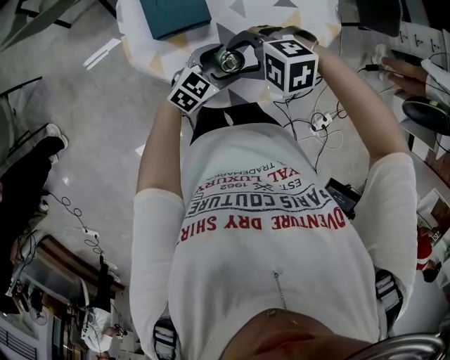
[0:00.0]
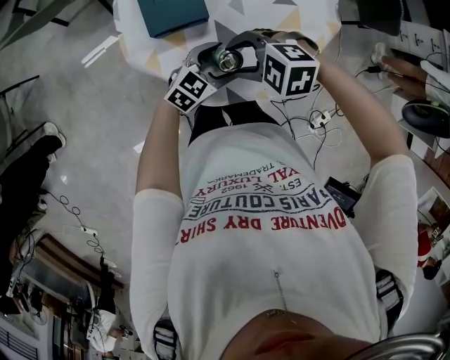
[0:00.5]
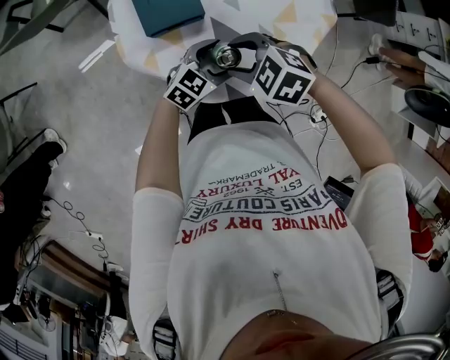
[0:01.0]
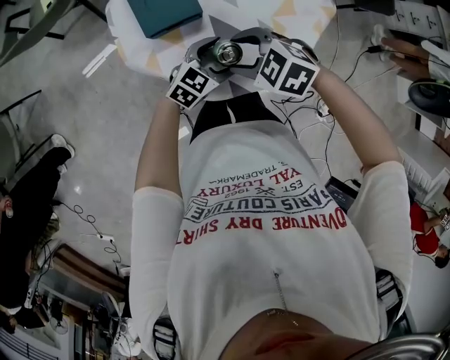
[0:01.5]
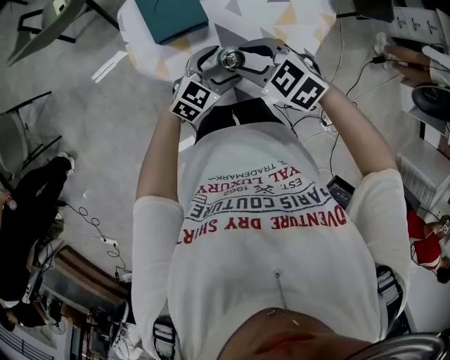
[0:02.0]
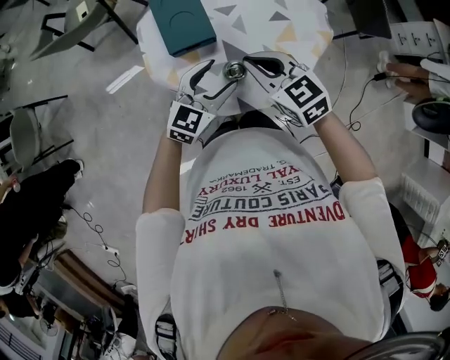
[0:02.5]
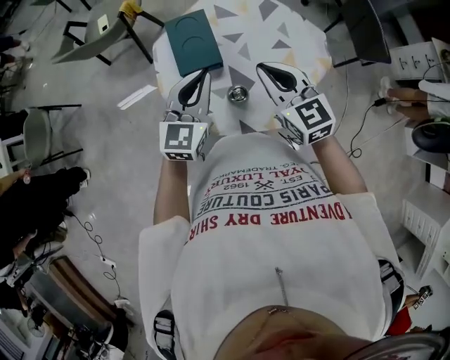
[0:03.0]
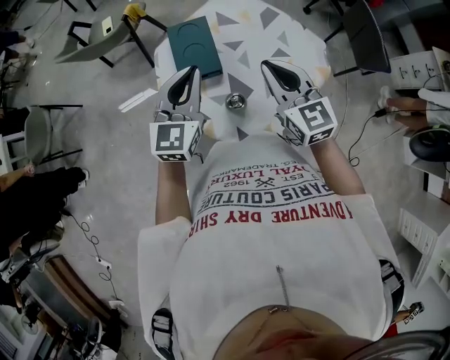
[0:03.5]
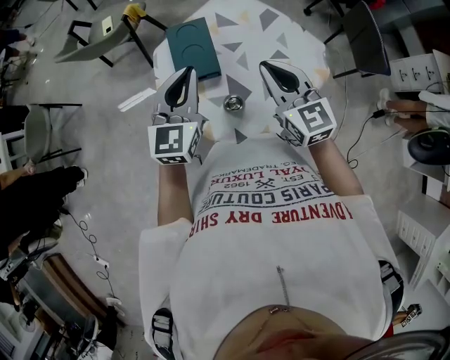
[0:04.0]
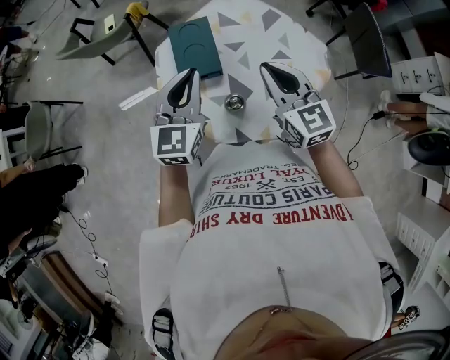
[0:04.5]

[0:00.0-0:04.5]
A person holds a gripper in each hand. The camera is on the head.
0:00.0 to 0:02.0: The right gripper swivels some 40 degrees.
0:02.0 to 0:04.5: The right gripper shifts roughly 15 cm upward, tips its fingers upward by some 40 degrees, and closes, while the left gripper travels upward by approximately 25 cm, swivels roughly 50 degrees, and closes up.

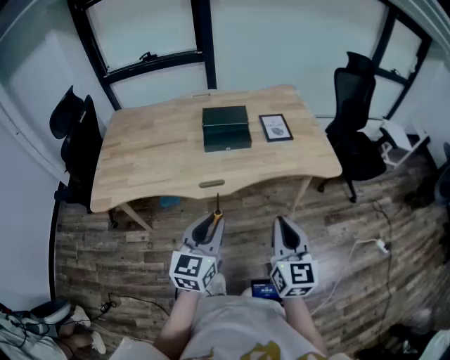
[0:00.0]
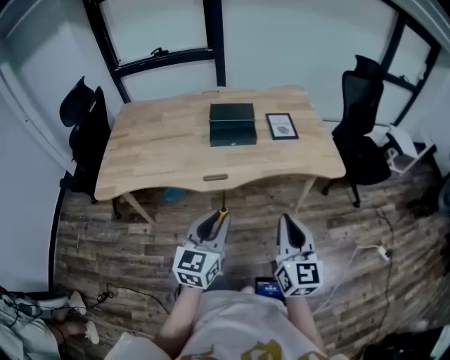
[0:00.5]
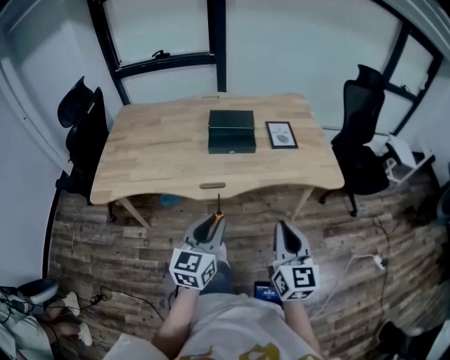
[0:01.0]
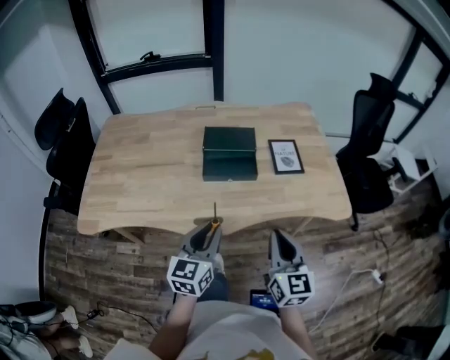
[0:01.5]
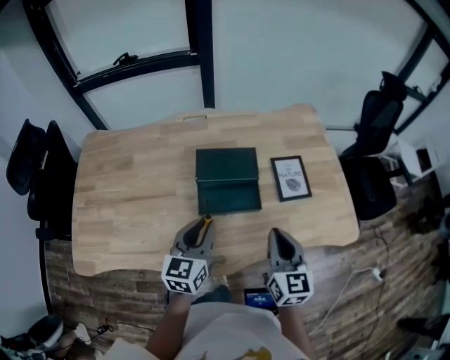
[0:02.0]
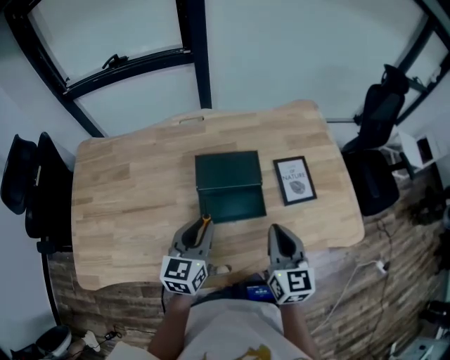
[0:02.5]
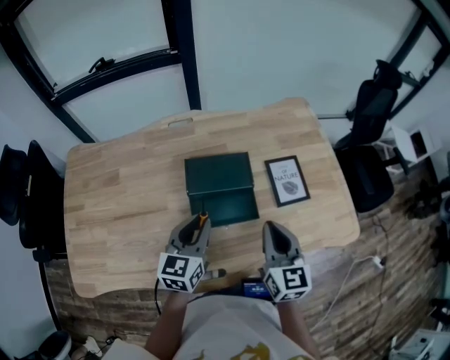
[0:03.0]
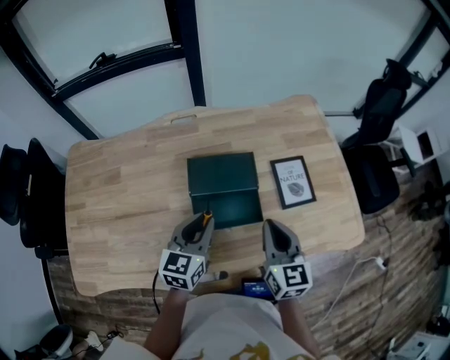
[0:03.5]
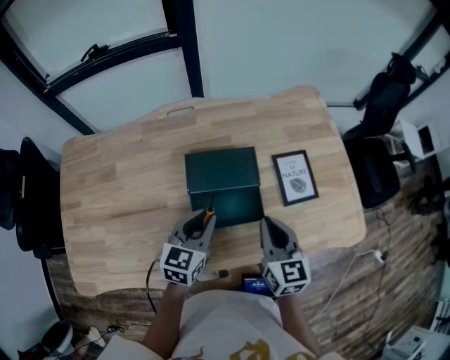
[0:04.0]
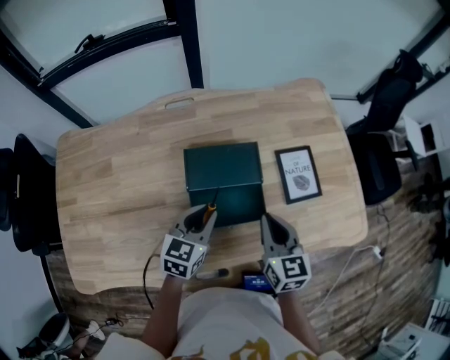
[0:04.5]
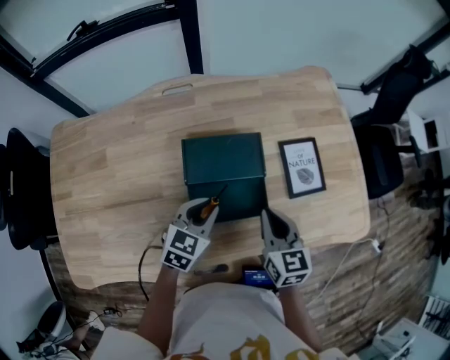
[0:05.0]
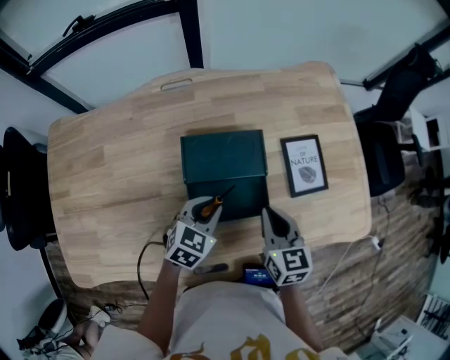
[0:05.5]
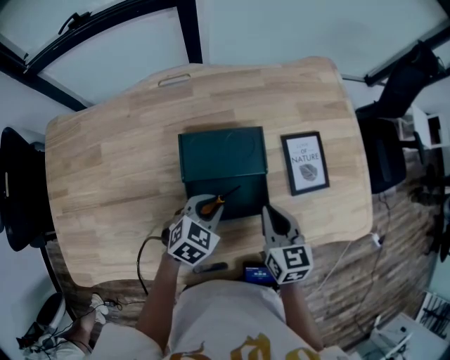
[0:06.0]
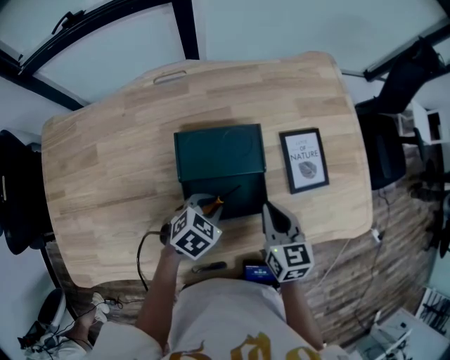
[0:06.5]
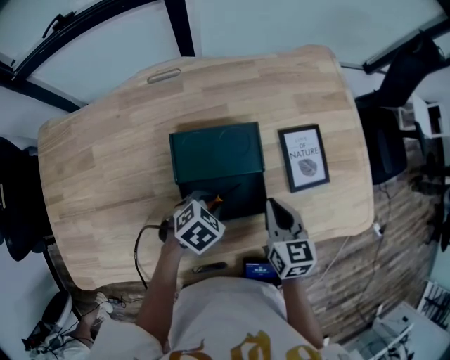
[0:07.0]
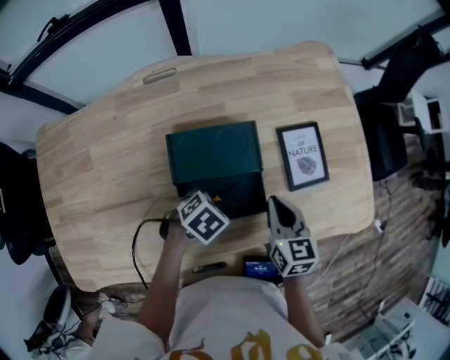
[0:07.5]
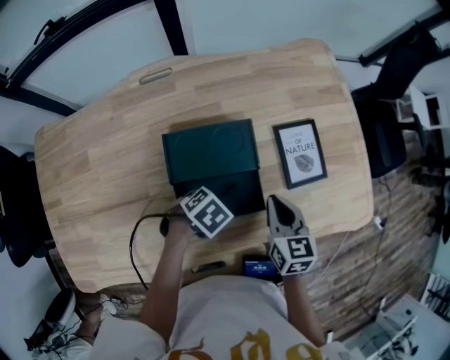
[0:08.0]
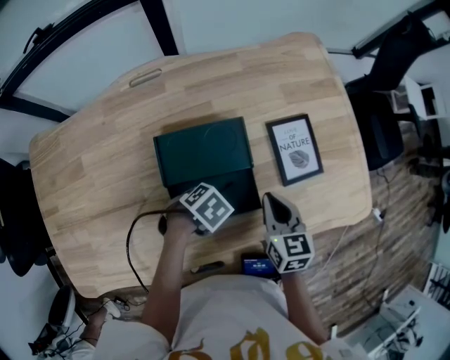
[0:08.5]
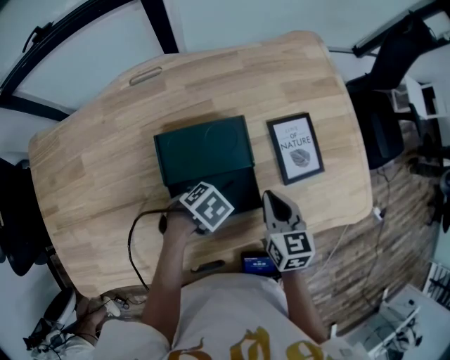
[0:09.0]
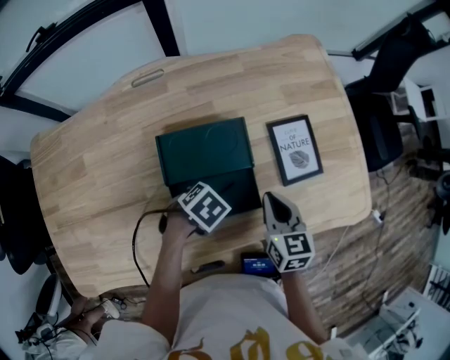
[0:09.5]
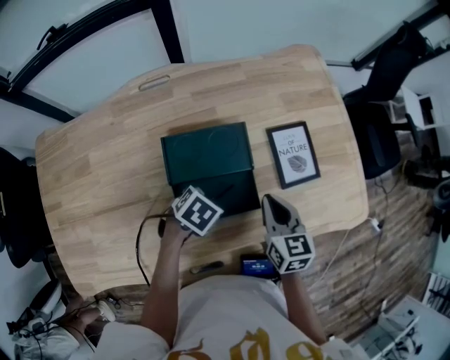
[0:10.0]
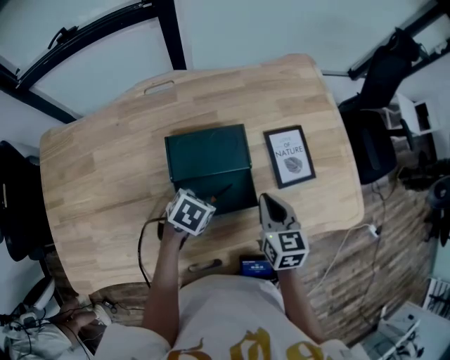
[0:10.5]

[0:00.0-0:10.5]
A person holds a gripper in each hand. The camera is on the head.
0:00.0 to 0:02.0: Both grippers travel together forward, approximately 35 cm.
0:02.0 to 0:04.0: The right gripper moves forward, approximately 10 cm. The left gripper heads forward and downward, covering some 10 cm.
0:04.0 to 0:06.5: The right gripper heads downward, covering approximately 10 cm, while the left gripper travels downward by about 15 cm, and points its fingers about 30 degrees further downward.
0:06.5 to 0:08.5: The left gripper swivels some 30 degrees.
0:08.5 to 0:10.5: The left gripper moves approximately 5 cm, and swivels roughly 30 degrees.

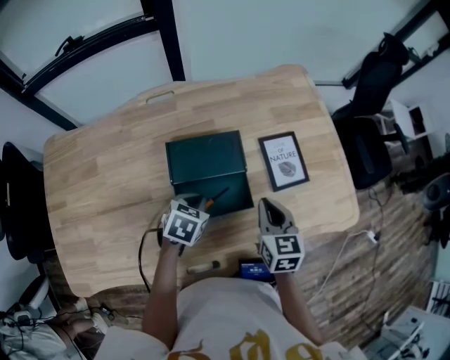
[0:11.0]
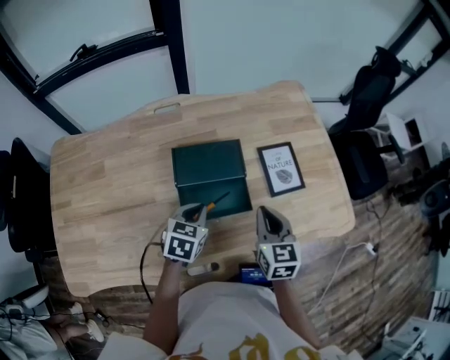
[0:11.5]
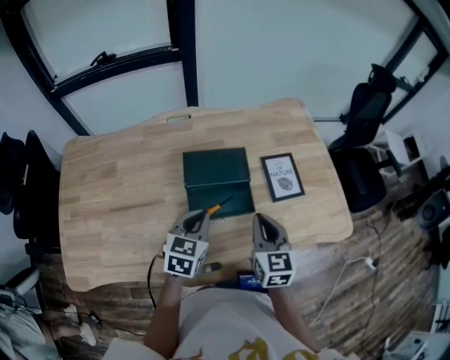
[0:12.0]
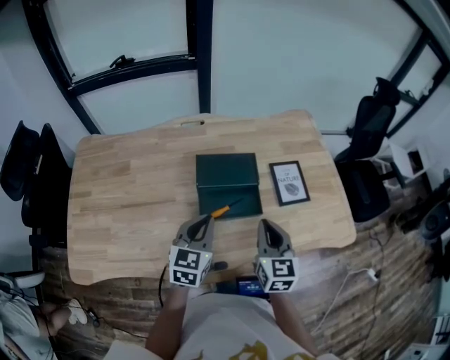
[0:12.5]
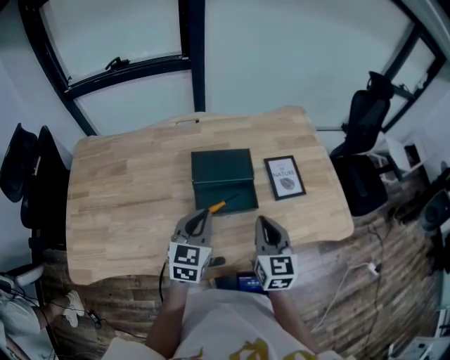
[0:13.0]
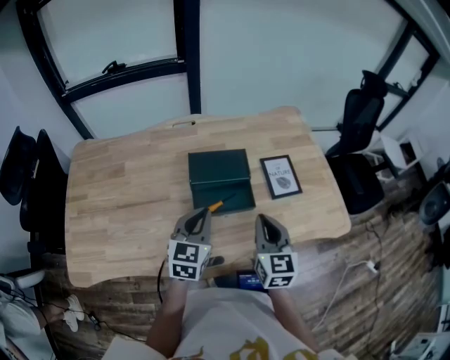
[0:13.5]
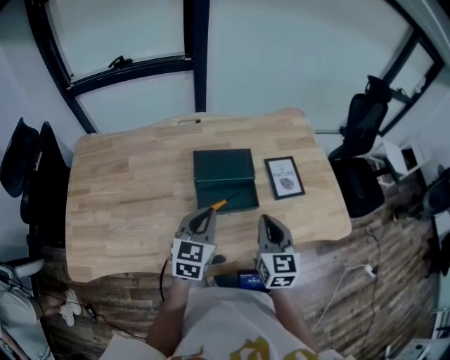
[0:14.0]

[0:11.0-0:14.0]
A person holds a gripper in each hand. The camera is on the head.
0:11.0 to 0:12.5: The right gripper travels backward and upward by approximately 10 cm, while the left gripper heads upward and backward, covering some 15 cm, and angles its fingers upward, by some 40 degrees.
0:12.5 to 0:14.0: There are only small adjustments of the grippers.

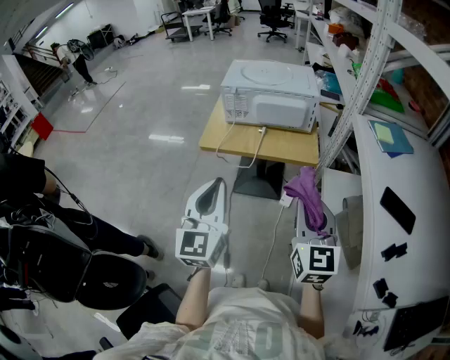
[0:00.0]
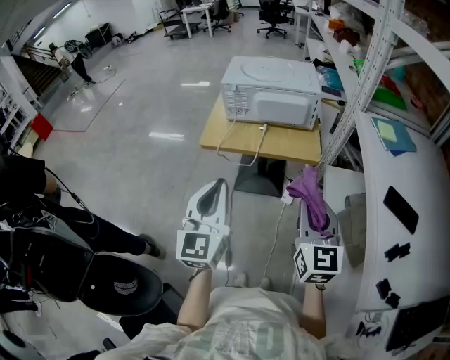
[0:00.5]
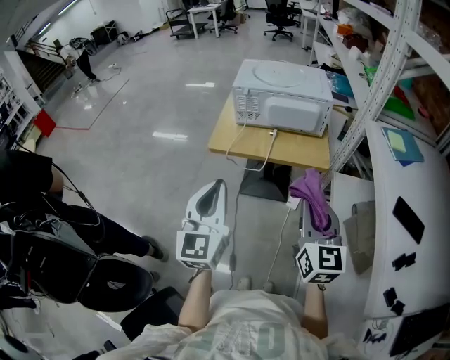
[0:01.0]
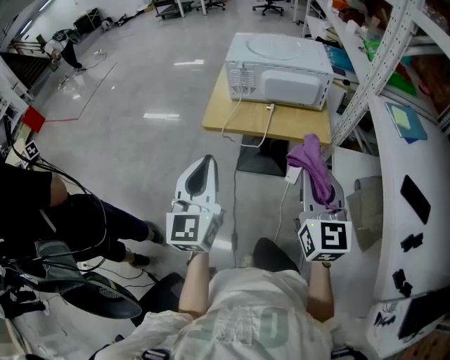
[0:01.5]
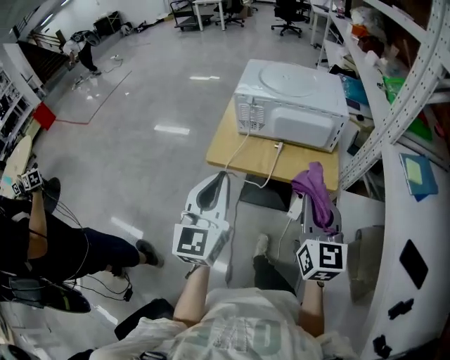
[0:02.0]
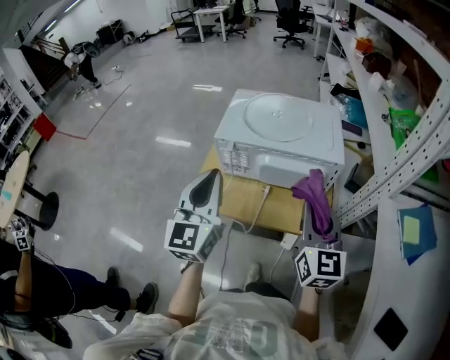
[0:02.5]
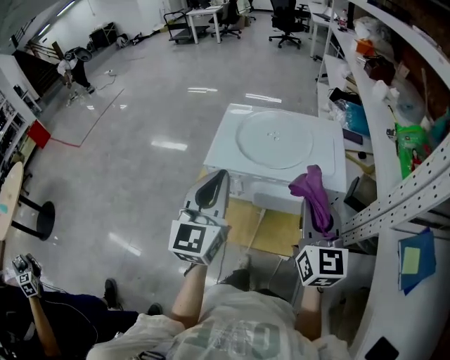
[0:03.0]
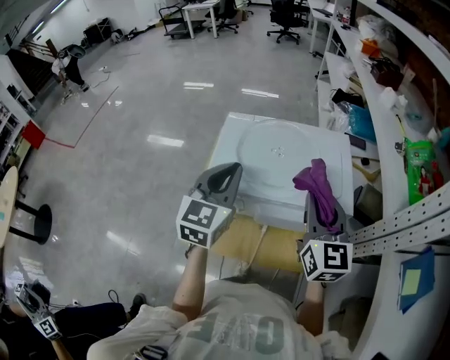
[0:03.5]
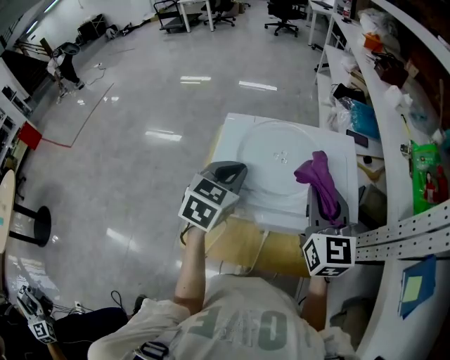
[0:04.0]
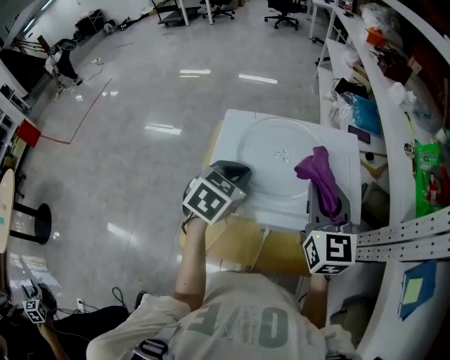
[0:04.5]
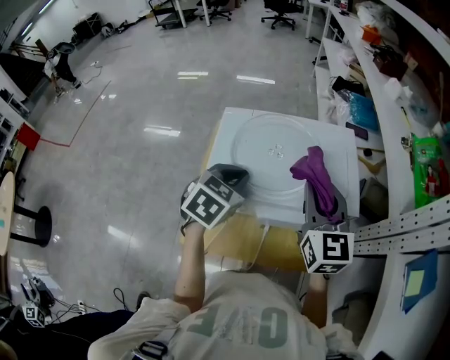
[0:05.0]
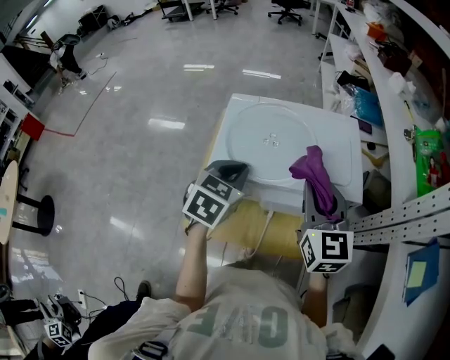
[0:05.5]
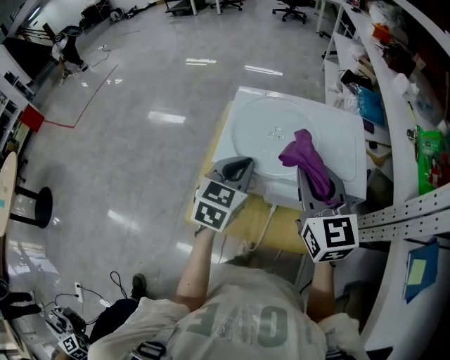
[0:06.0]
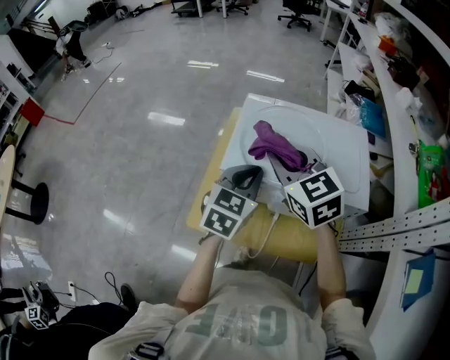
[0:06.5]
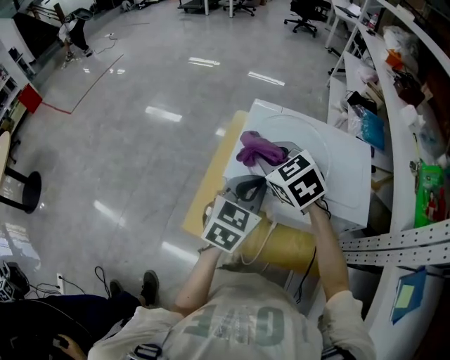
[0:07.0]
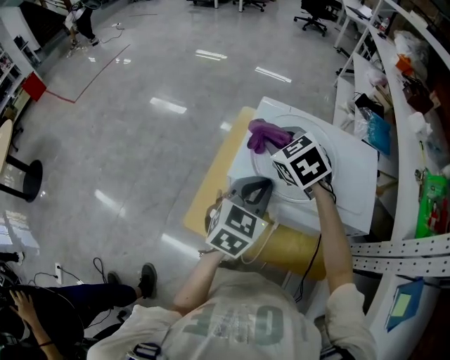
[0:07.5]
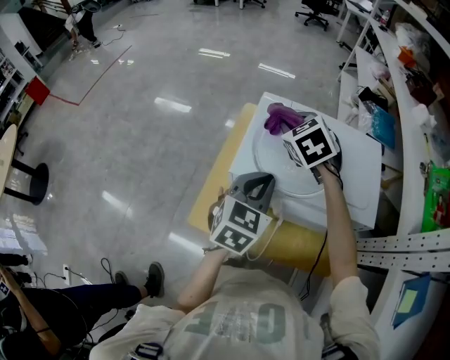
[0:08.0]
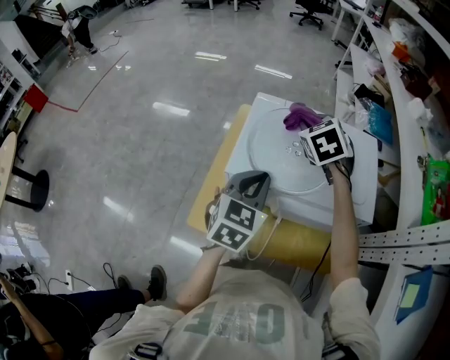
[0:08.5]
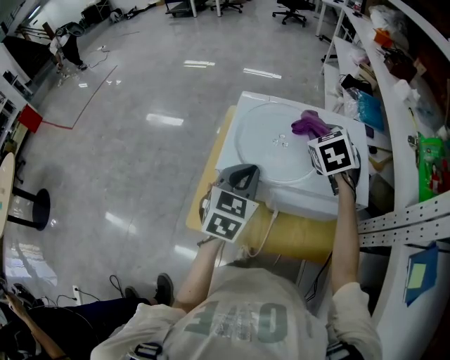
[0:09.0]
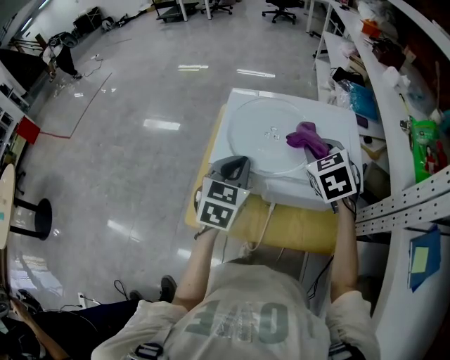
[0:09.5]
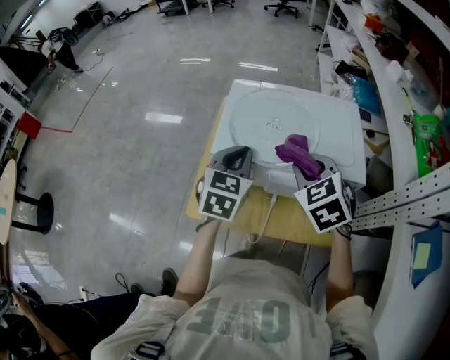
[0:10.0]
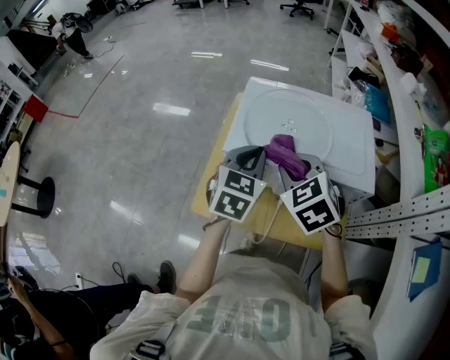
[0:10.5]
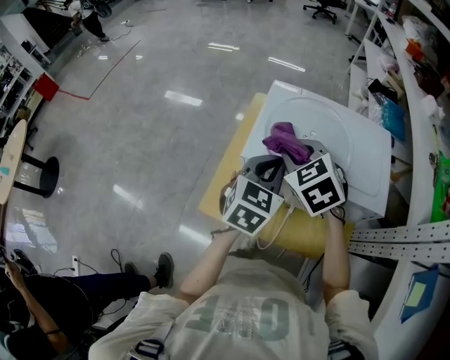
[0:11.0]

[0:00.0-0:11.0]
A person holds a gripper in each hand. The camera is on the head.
0:00.0 to 0:02.0: The grippers both shift forward by roughly 15 cm.
0:02.0 to 0:03.5: The grippers both shift forward by roughly 35 cm.
0:03.5 to 0:05.5: The left gripper shifts approximately 10 cm downward, and rotates about 30 degrees.
0:05.5 to 0:07.5: The right gripper goes about 25 cm to the left and forward, and angles its fingers downward, by about 40 degrees.
0:07.5 to 0:09.0: The right gripper moves to the right, roughly 20 cm, and turns by approximately 30 degrees.
0:09.0 to 0:11.0: The right gripper is displaced to the left and backward by approximately 20 cm, and swivels approximately 20 degrees.
